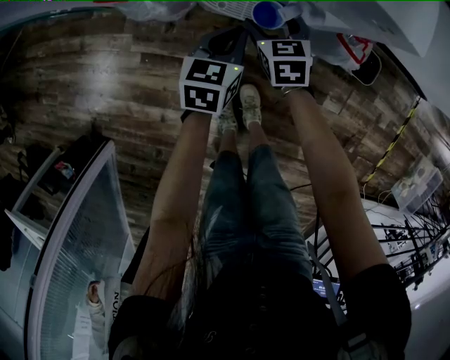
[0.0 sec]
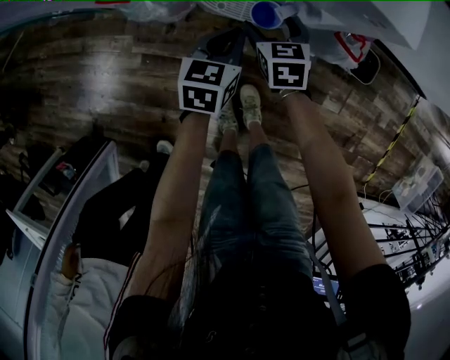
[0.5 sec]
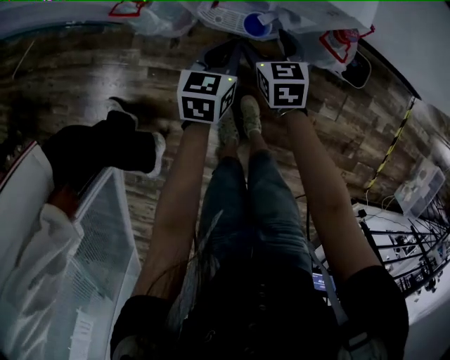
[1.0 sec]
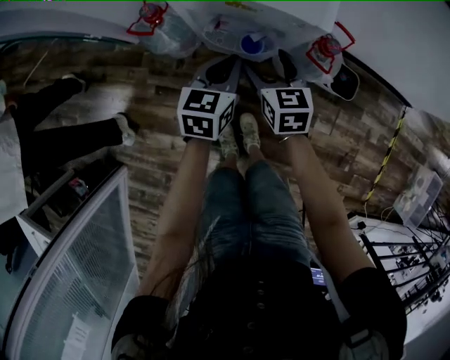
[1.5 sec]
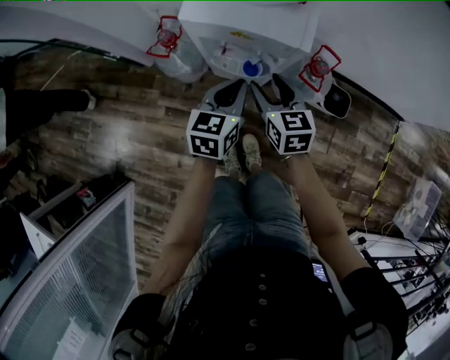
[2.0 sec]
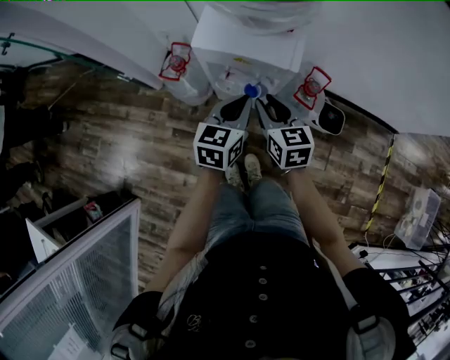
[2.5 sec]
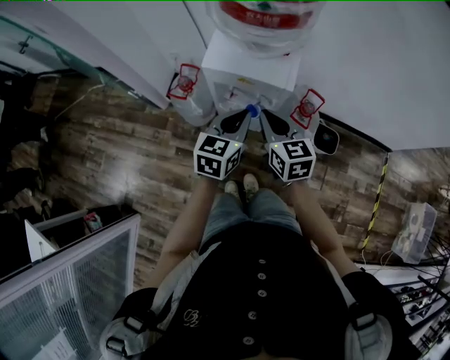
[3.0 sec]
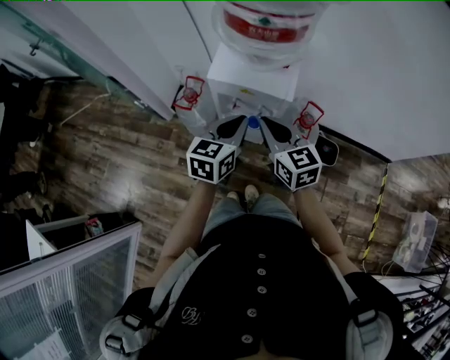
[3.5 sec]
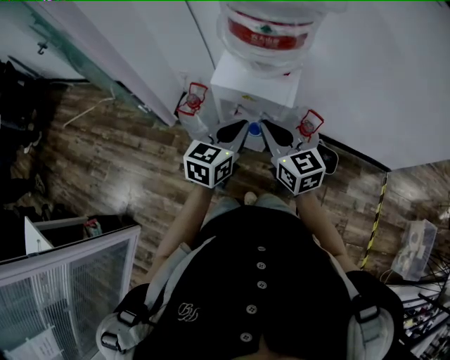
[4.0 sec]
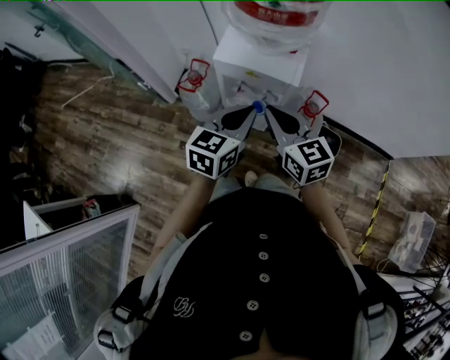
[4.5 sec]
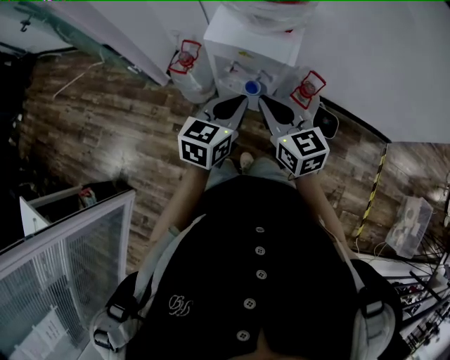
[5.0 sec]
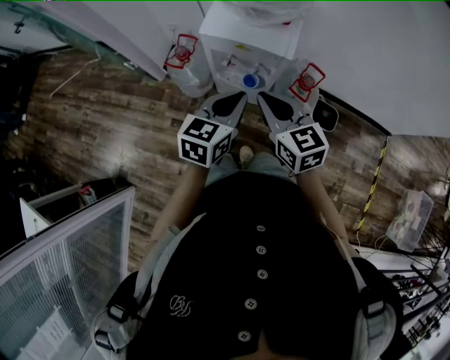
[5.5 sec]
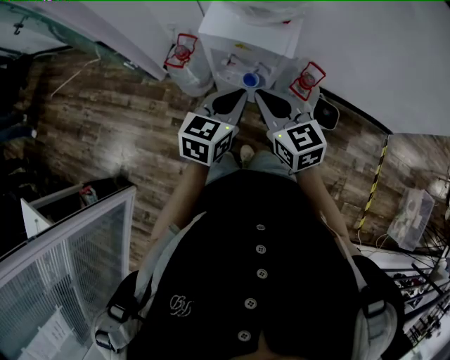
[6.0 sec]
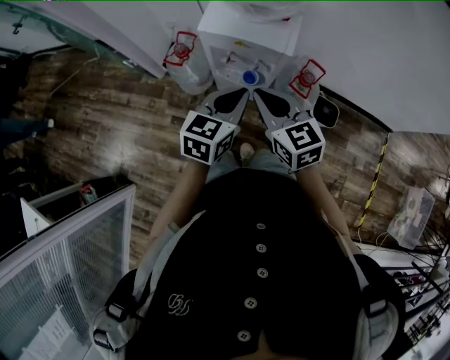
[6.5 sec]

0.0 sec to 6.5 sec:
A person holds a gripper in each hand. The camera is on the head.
0.0 sec to 2.0 sec: The grippers both shift upward by about 25 cm.
2.0 sec to 4.5 sec: Both grippers move upward, some 20 cm. The right gripper swivels some 20 degrees, and closes its fingers.
4.5 sec to 6.5 sec: The grippers move only a little.

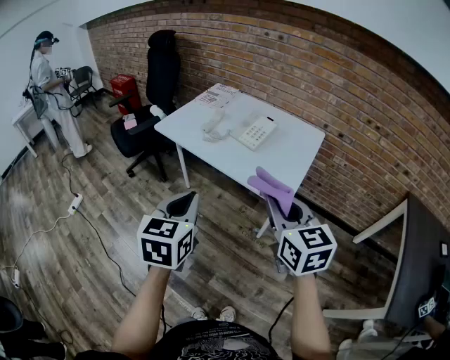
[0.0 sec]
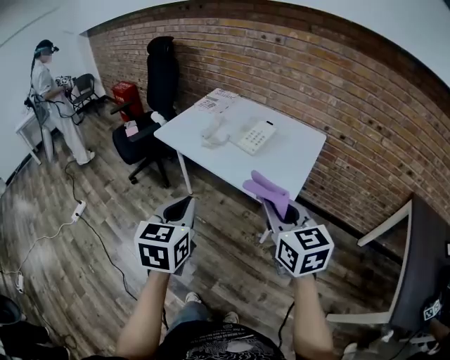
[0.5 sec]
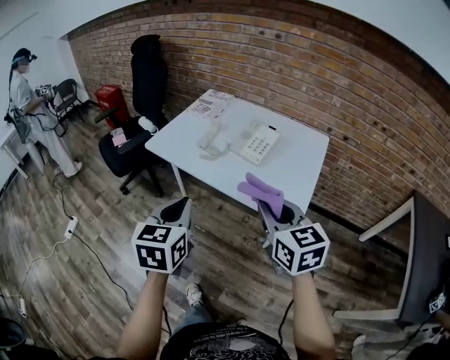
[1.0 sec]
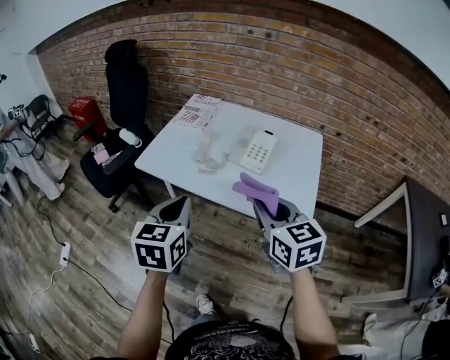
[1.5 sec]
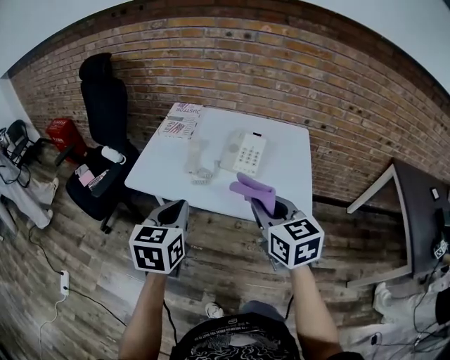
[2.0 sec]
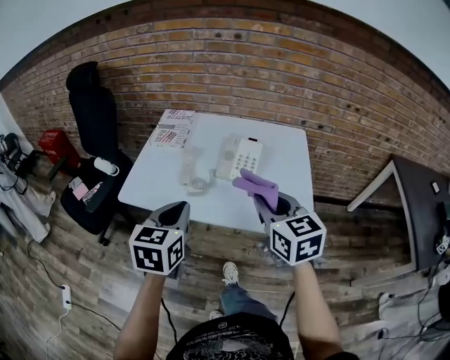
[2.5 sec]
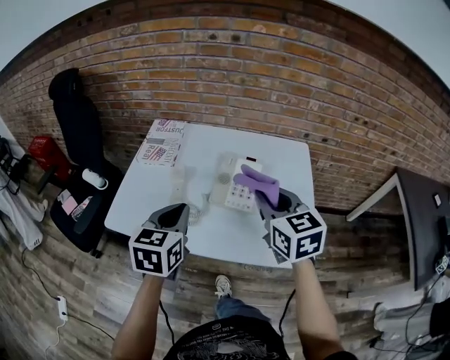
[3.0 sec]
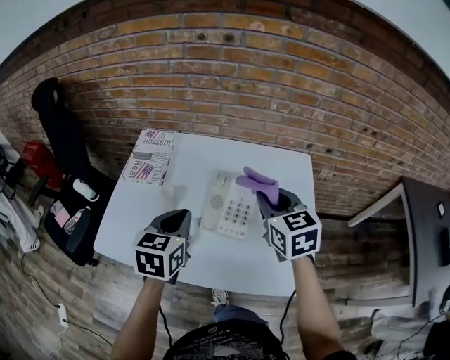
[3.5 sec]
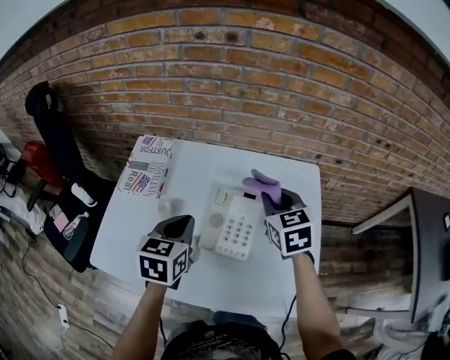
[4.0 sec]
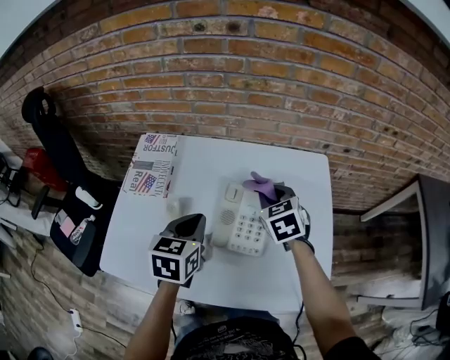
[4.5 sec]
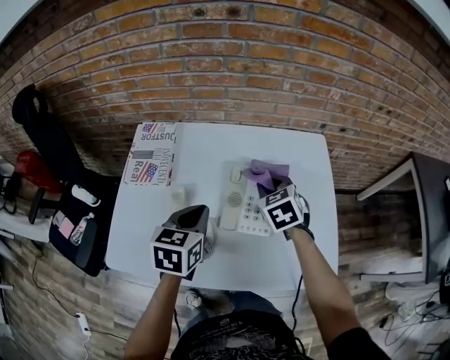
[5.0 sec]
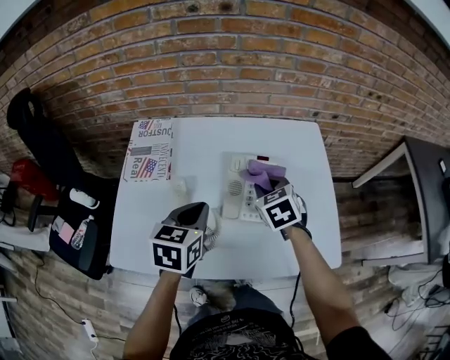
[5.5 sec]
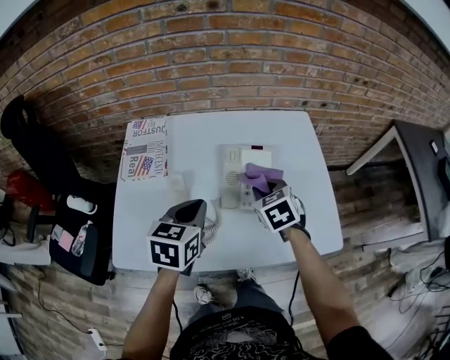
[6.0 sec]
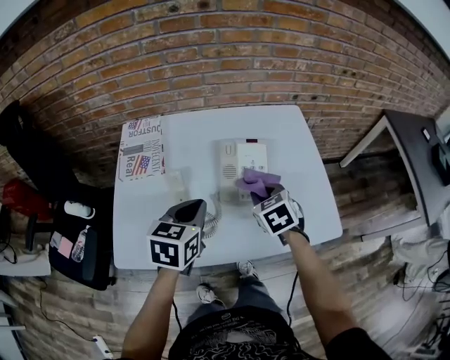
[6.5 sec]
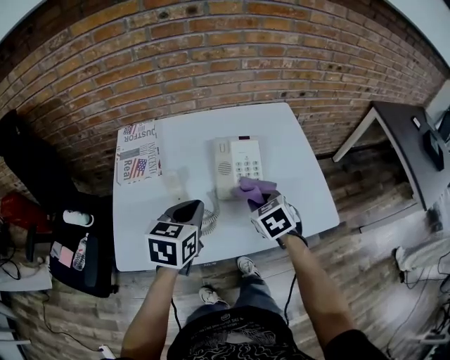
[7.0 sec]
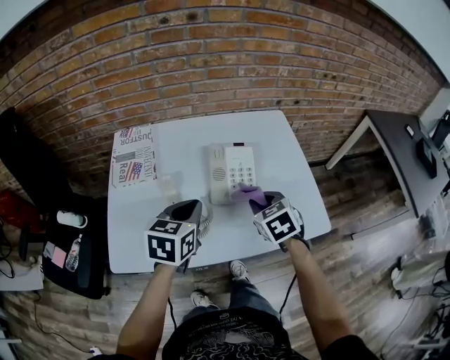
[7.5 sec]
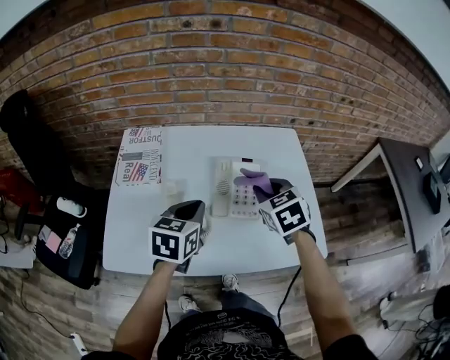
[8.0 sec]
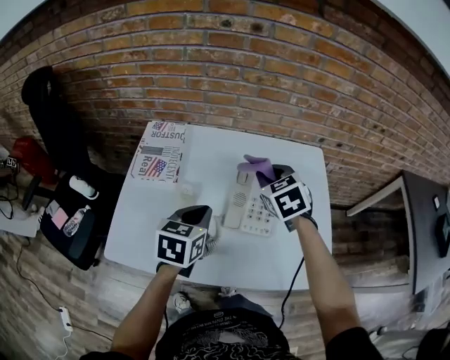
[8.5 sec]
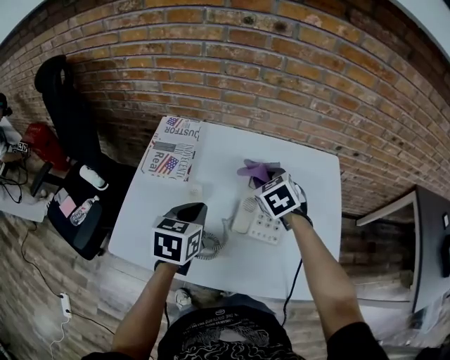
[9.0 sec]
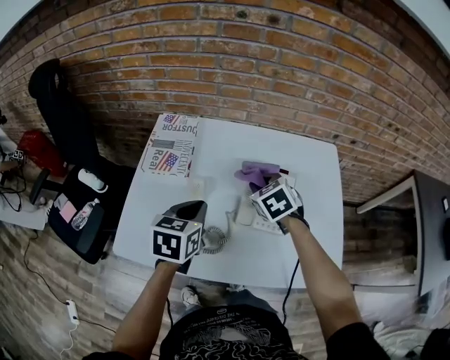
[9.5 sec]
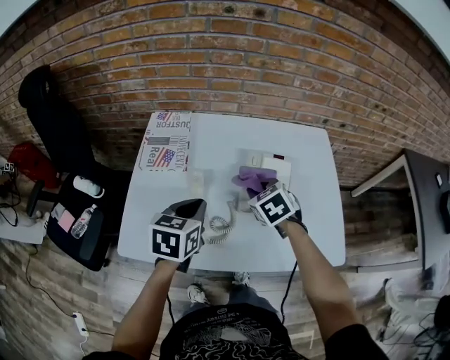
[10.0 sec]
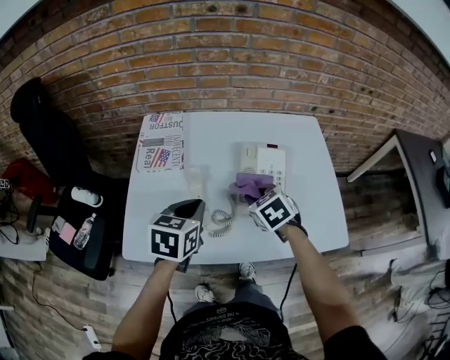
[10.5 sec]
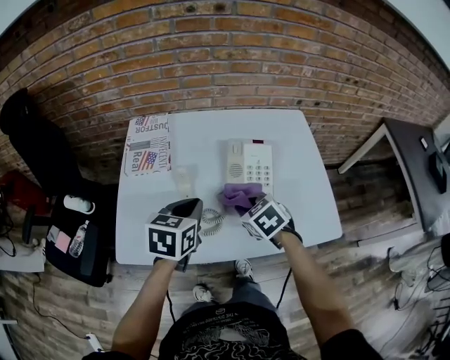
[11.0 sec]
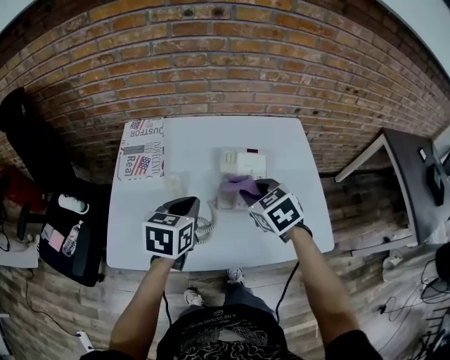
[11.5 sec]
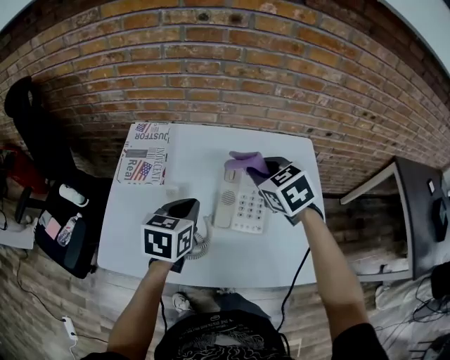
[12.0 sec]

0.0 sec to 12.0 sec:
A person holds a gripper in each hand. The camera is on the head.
0.0 sec to 2.0 sec: Both grippers travel together forward and to the left, about 25 cm.
2.0 sec to 4.0 sec: The grippers both shift forward by some 35 cm.
4.0 sec to 6.0 sec: The left gripper is displaced backward by some 5 cm. The right gripper goes about 15 cm backward, downward and to the left.
6.0 sec to 8.0 sec: The right gripper goes roughly 10 cm upward.
8.0 sec to 10.0 sec: The right gripper shifts roughly 15 cm to the left and downward, and goes forward and returns, about 10 cm each way. The left gripper shifts about 10 cm to the left.
10.0 sec to 12.0 sec: The left gripper is displaced to the right by roughly 5 cm, while the right gripper heads upward, forward and to the right, covering roughly 15 cm.

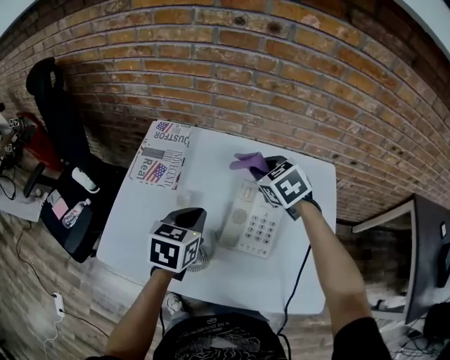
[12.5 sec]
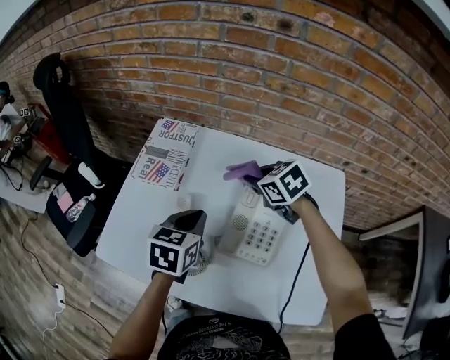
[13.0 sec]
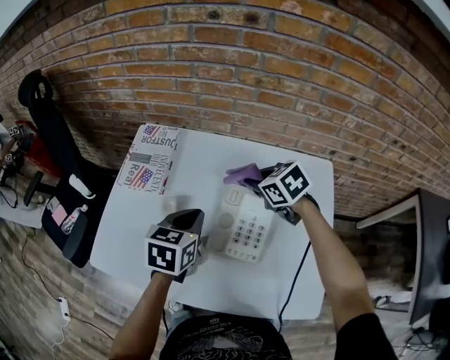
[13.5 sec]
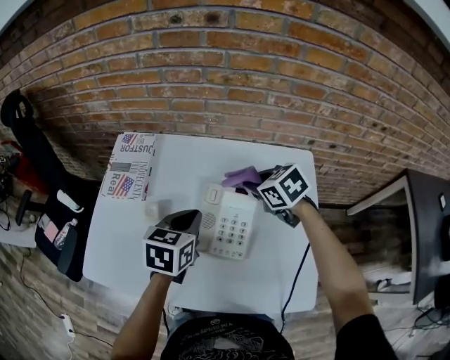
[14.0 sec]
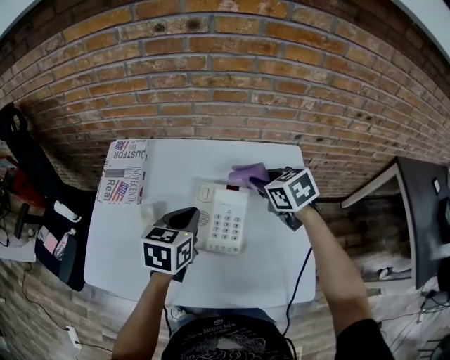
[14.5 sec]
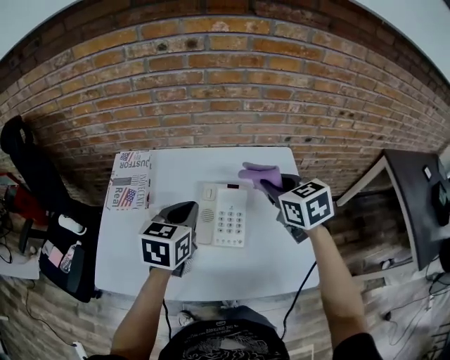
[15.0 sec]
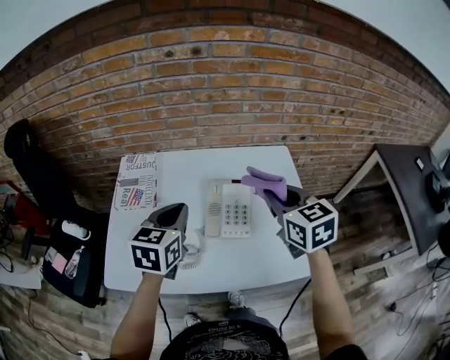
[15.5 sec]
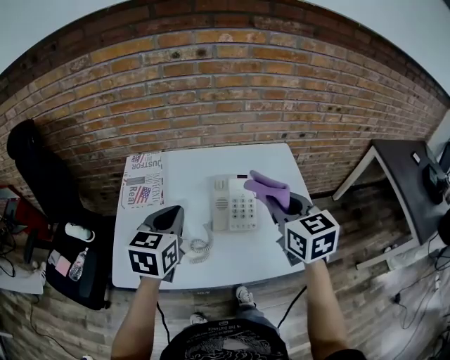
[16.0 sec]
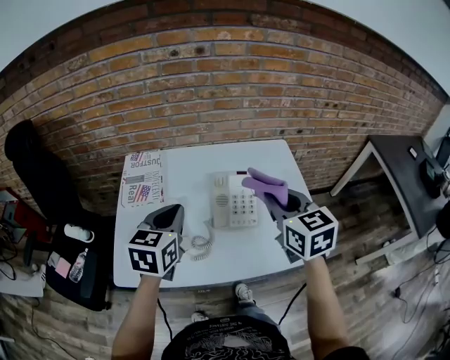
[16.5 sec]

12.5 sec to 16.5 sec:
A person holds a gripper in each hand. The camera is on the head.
12.5 sec to 14.5 sec: The right gripper goes about 15 cm to the right and backward, and turns by roughly 20 degrees, while the left gripper travels to the right by roughly 10 cm.
14.5 sec to 16.5 sec: The right gripper heads backward and upward, covering some 25 cm, and swivels approximately 30 degrees, while the left gripper goes about 20 cm to the left, backward and upward.

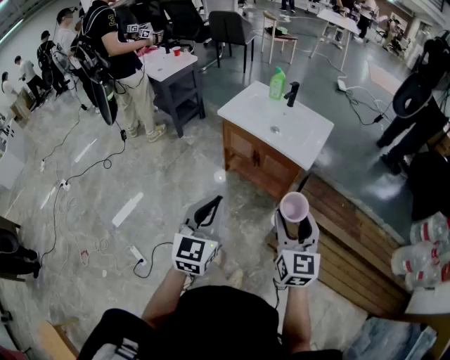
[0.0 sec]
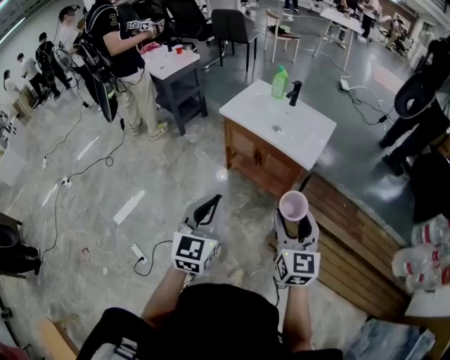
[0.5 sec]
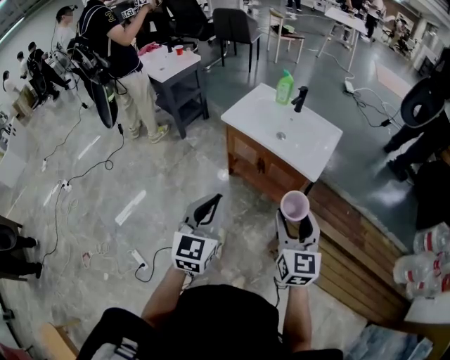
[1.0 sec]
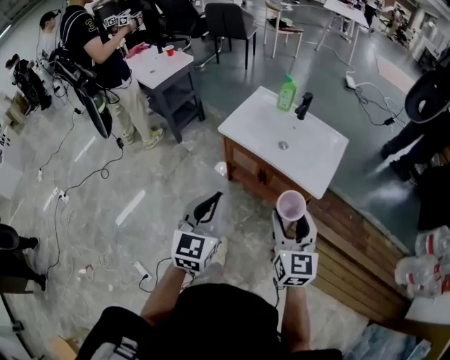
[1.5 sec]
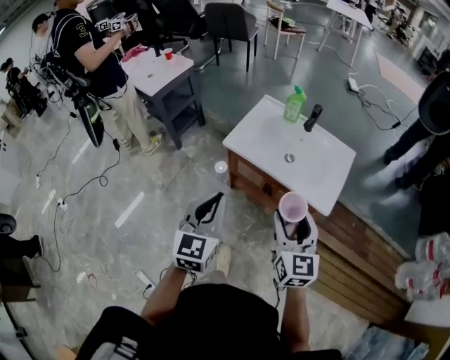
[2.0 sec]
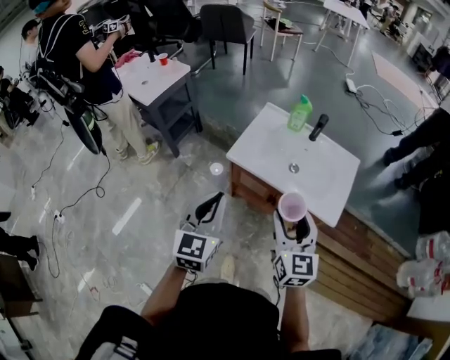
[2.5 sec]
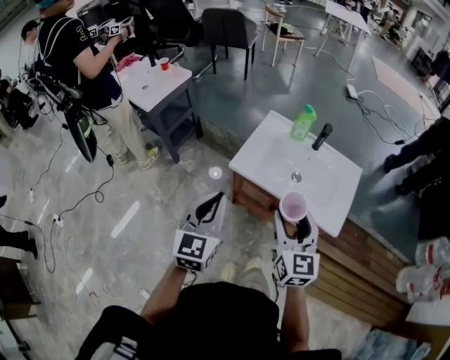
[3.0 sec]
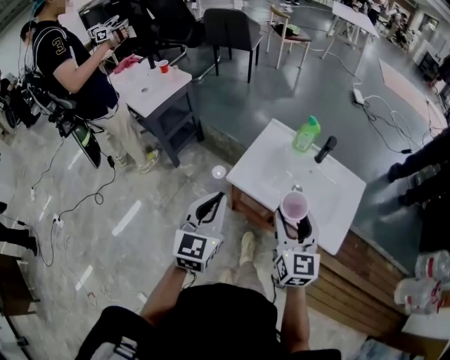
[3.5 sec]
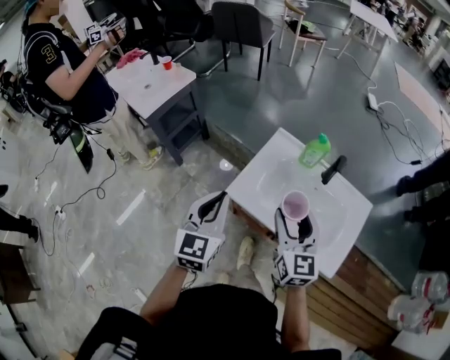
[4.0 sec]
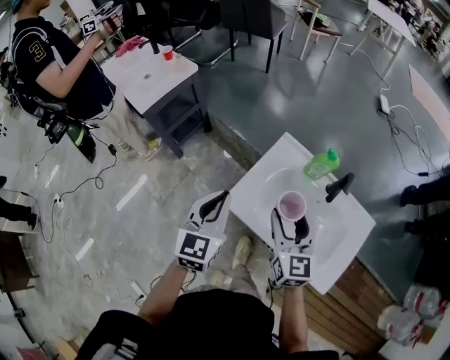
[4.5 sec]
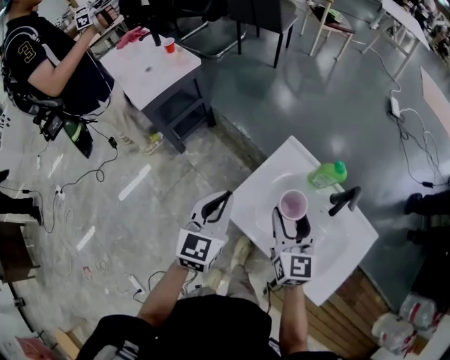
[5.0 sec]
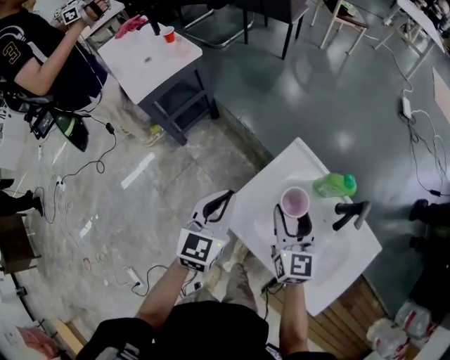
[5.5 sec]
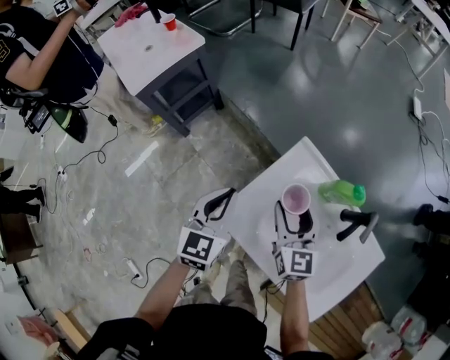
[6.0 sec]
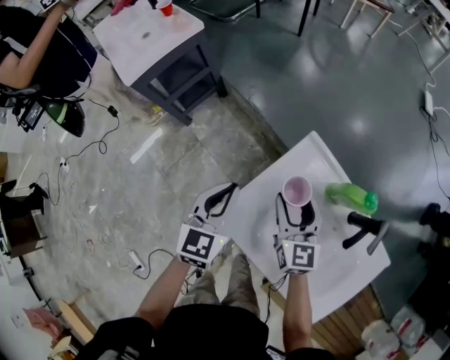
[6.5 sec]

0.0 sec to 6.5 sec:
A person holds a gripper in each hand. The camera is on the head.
0.0 sec to 2.0 sec: Both grippers travel together forward, roughly 30 cm.
2.0 sec to 4.5 sec: Both grippers travel together forward, about 35 cm.
4.5 sec to 6.5 sec: Both grippers move downward and forward, approximately 20 cm.
